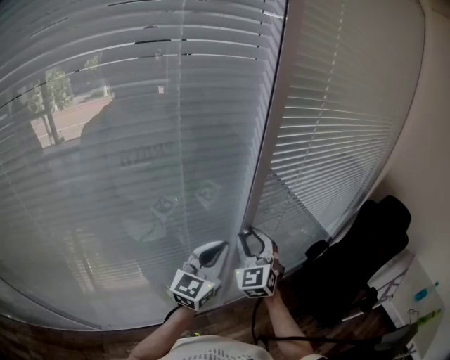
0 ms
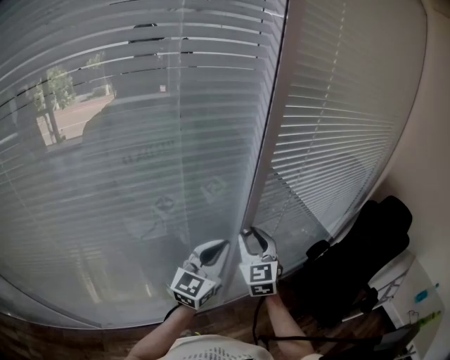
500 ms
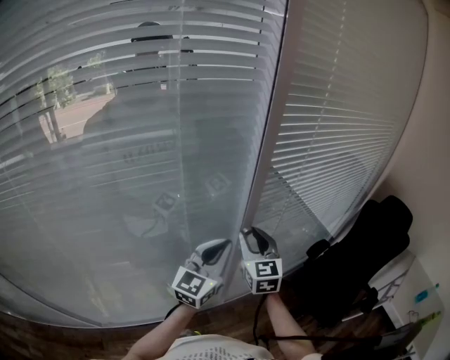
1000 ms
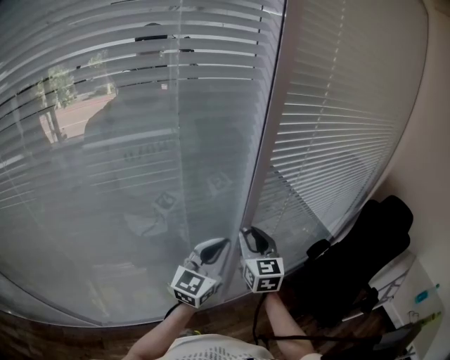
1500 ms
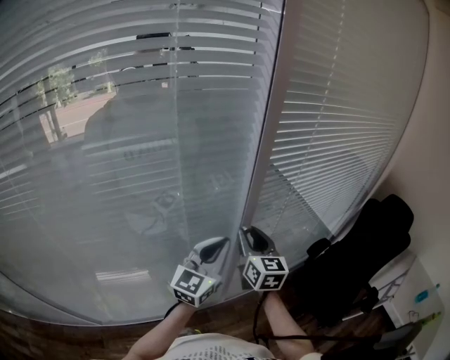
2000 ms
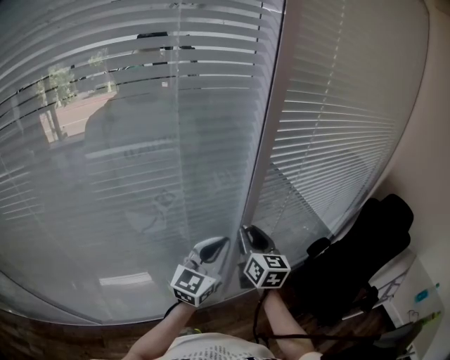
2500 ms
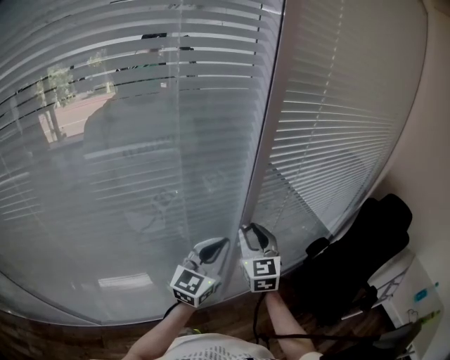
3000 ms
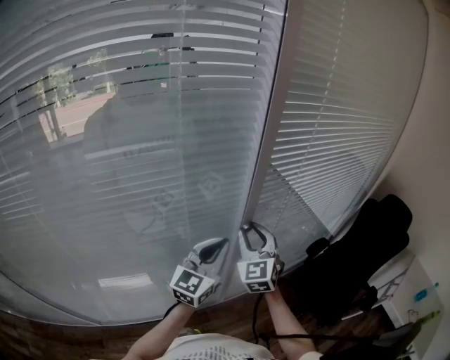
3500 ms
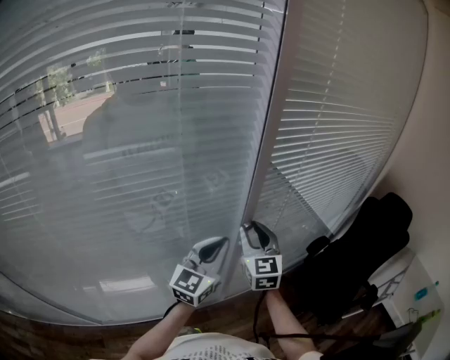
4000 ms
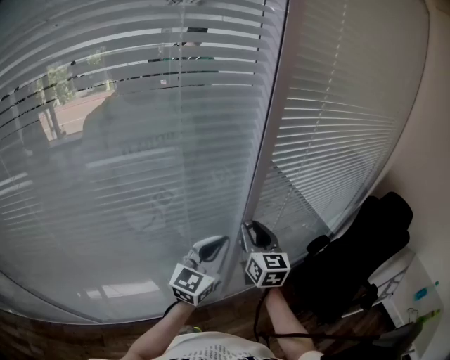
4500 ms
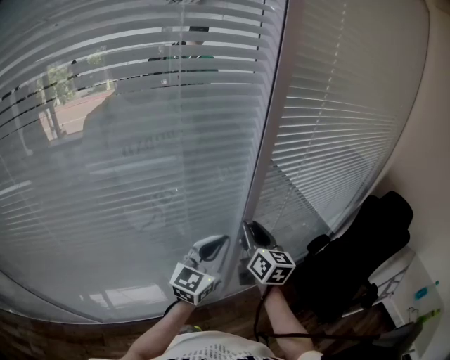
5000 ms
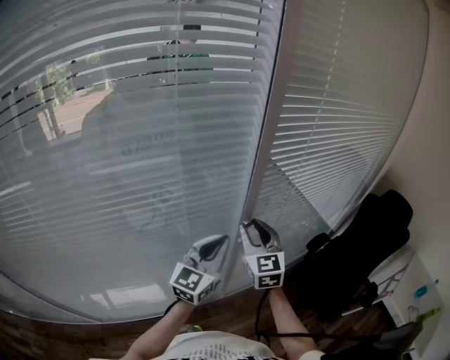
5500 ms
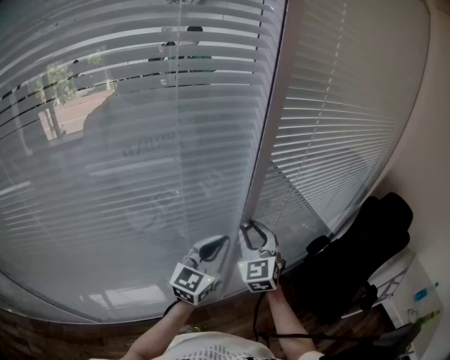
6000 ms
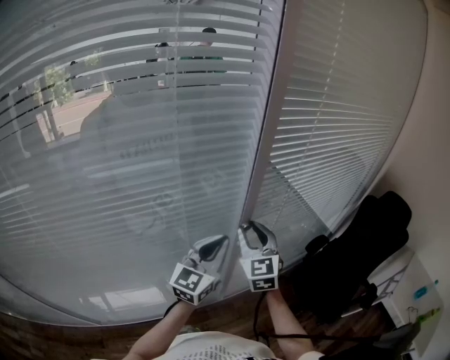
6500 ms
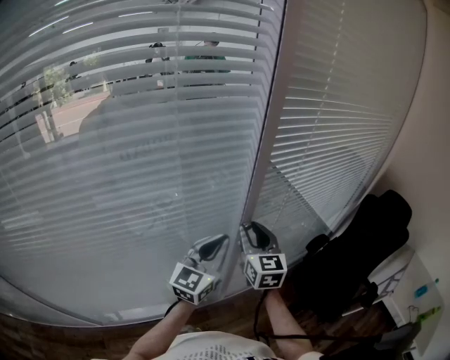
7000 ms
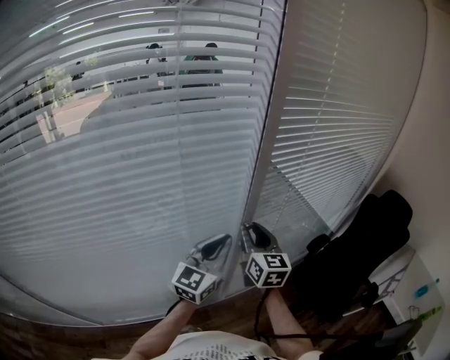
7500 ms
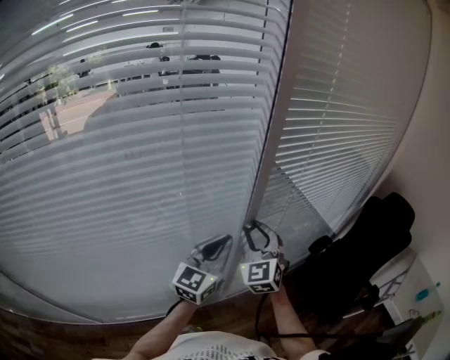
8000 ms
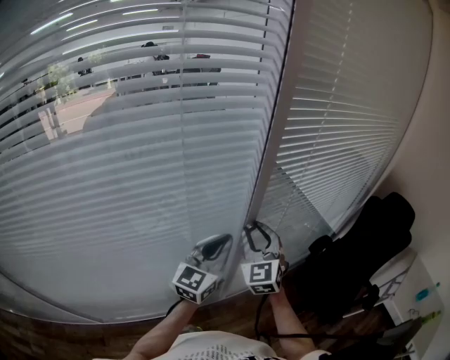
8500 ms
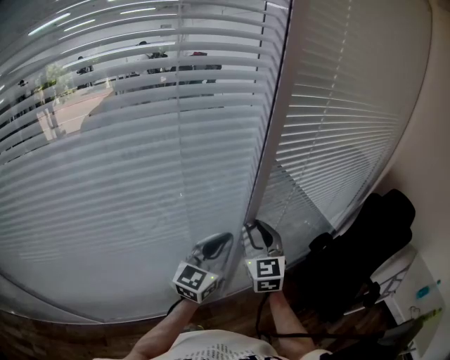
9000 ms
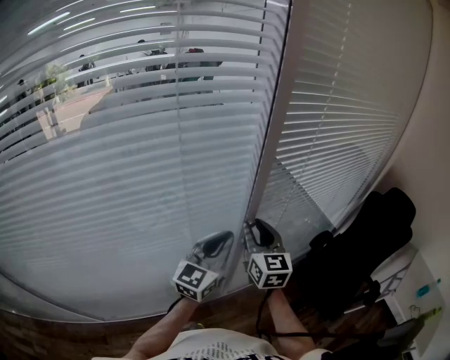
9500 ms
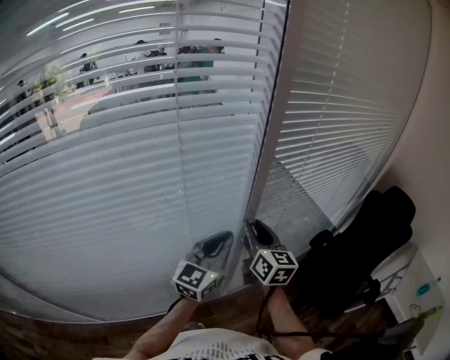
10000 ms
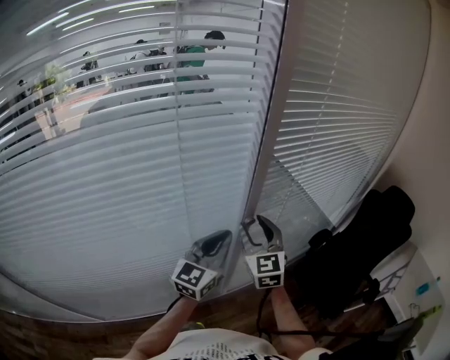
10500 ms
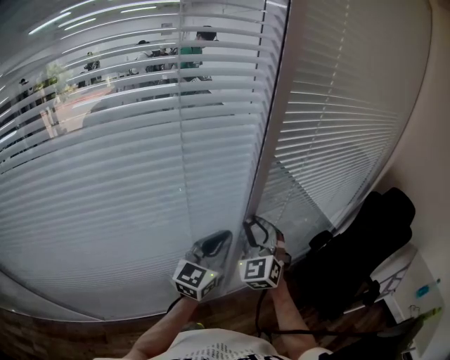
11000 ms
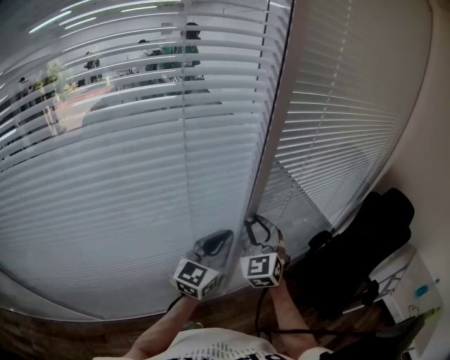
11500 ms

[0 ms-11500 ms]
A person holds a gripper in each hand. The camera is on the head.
0 ms to 2000 ms: The right gripper twists roughly 50 degrees clockwise, seen from behind.
2000 ms to 4000 ms: The right gripper swivels approximately 20 degrees.
6000 ms to 7500 ms: The right gripper rotates roughly 40 degrees.
9500 ms to 11500 ms: The right gripper turns by roughly 40 degrees.

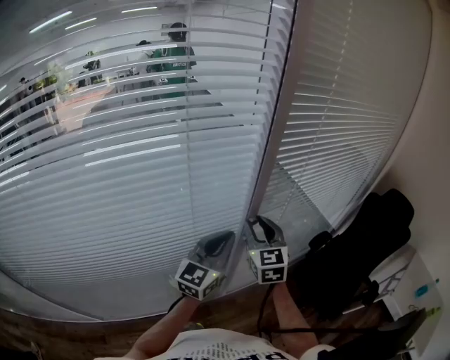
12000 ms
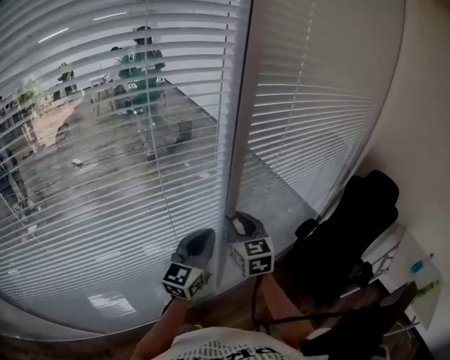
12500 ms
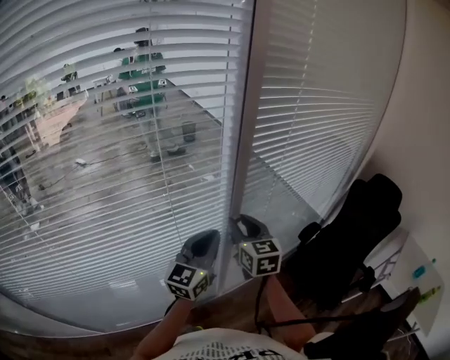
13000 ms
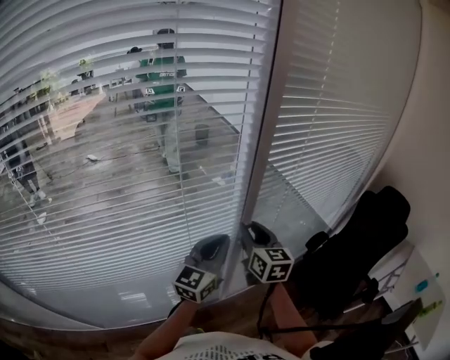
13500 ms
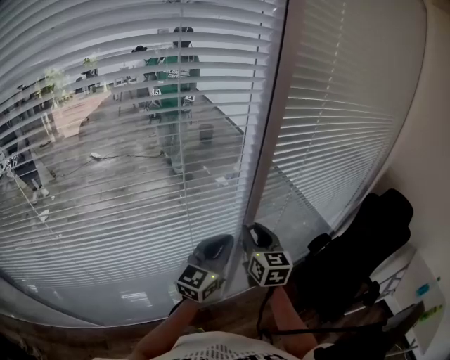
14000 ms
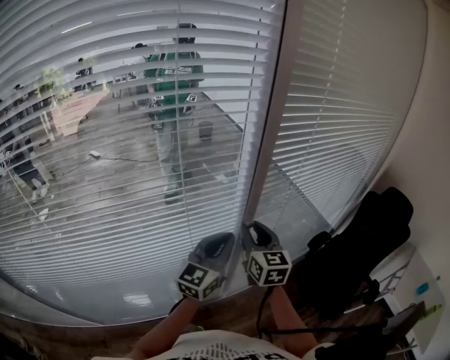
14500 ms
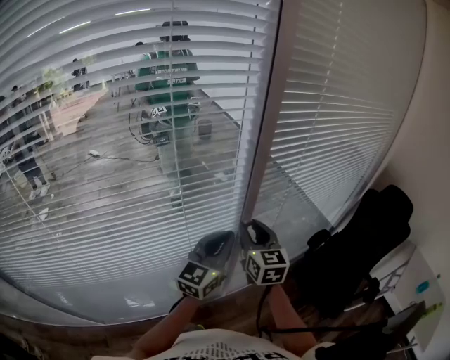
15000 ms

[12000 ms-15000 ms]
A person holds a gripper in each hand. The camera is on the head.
12000 ms to 13500 ms: The right gripper rotates some 20 degrees.
13500 ms to 15000 ms: The grippers move only a little.

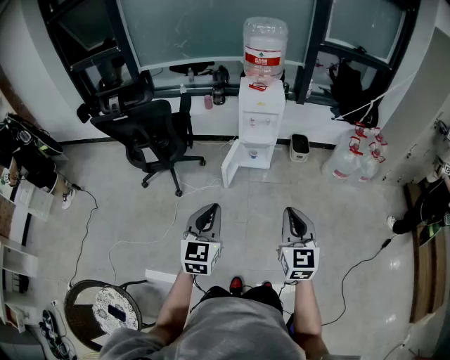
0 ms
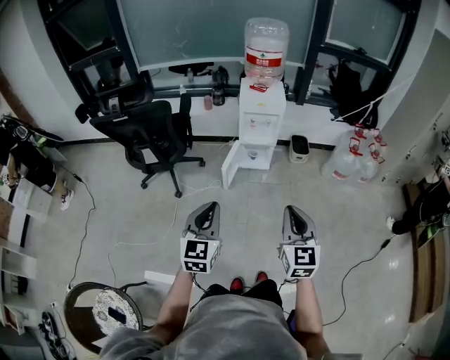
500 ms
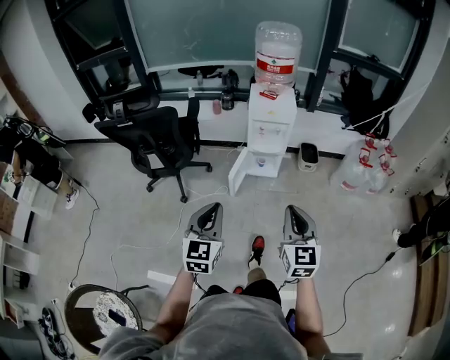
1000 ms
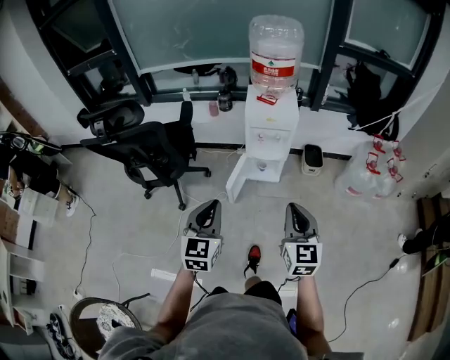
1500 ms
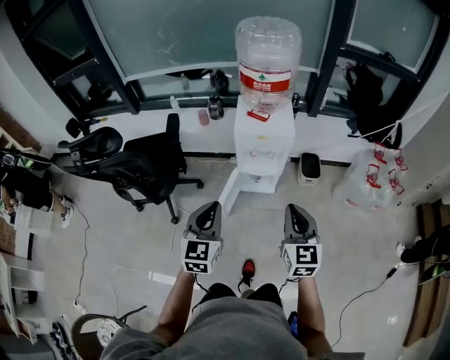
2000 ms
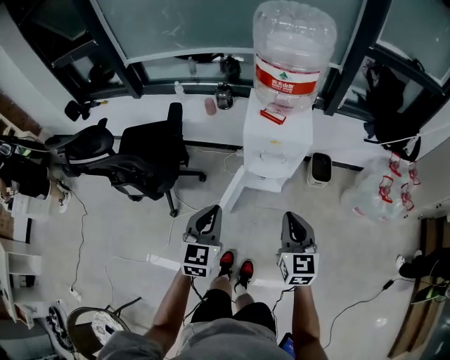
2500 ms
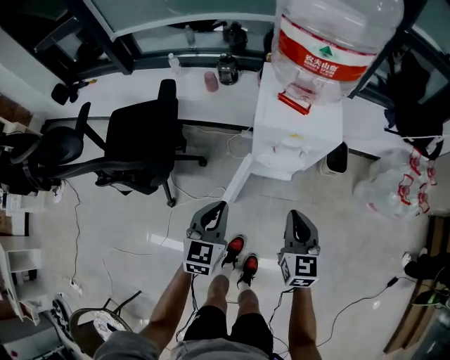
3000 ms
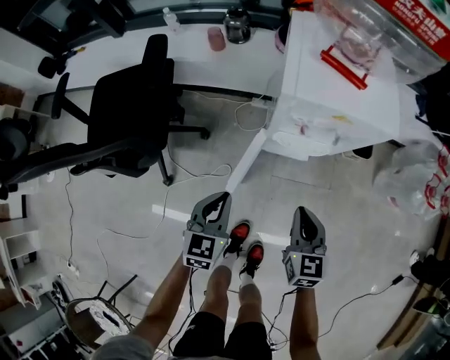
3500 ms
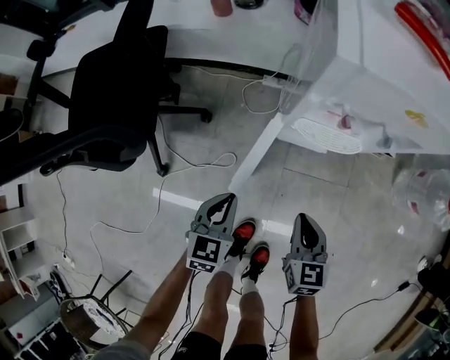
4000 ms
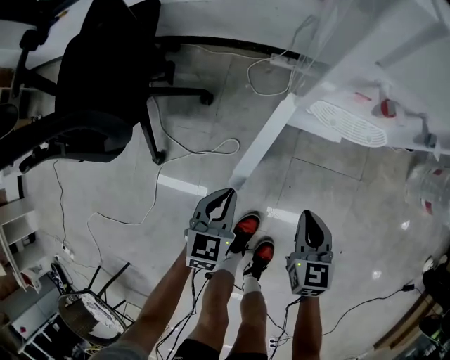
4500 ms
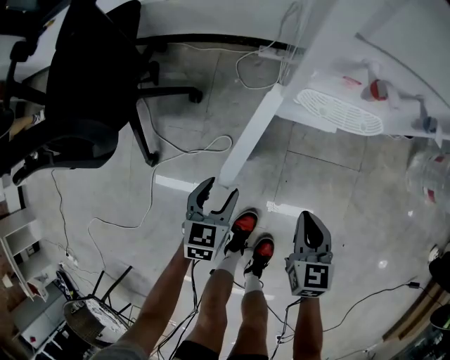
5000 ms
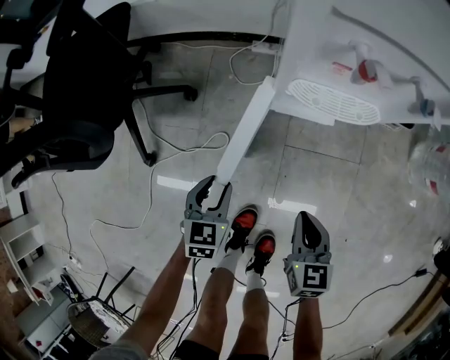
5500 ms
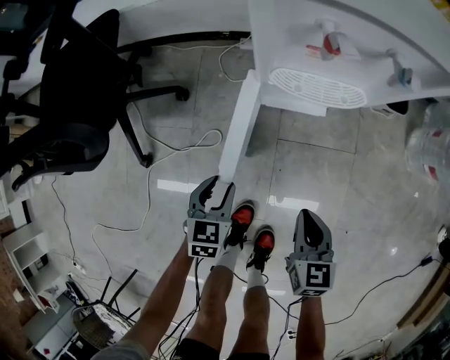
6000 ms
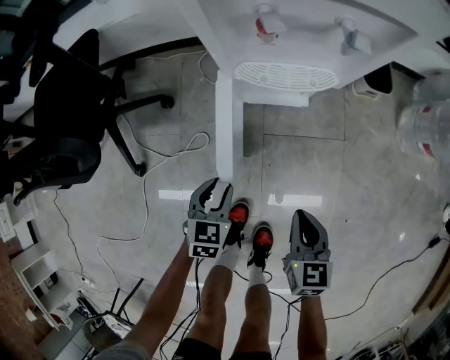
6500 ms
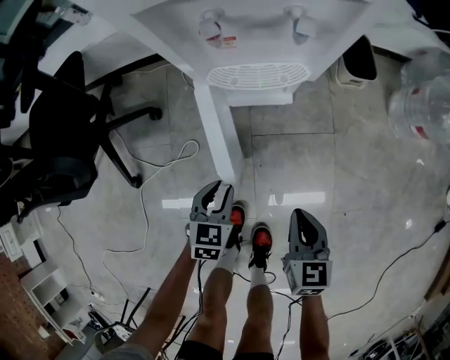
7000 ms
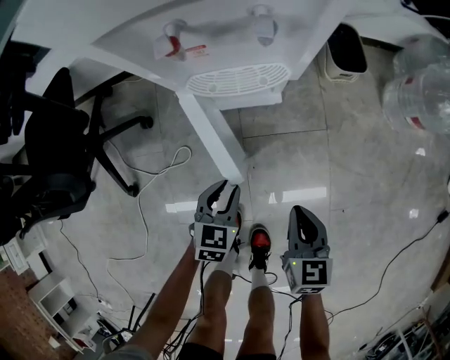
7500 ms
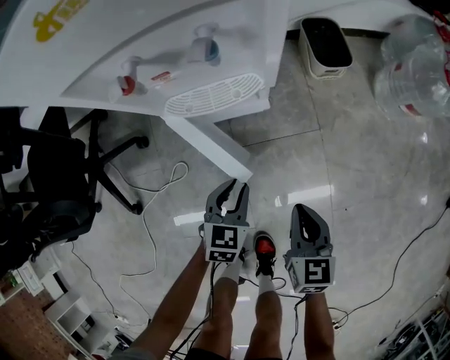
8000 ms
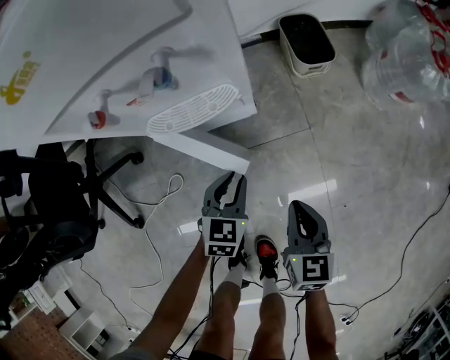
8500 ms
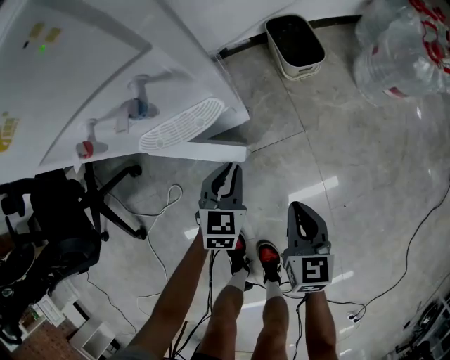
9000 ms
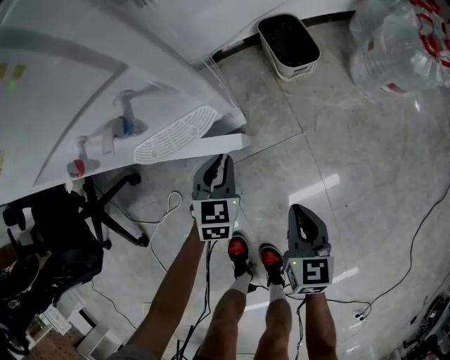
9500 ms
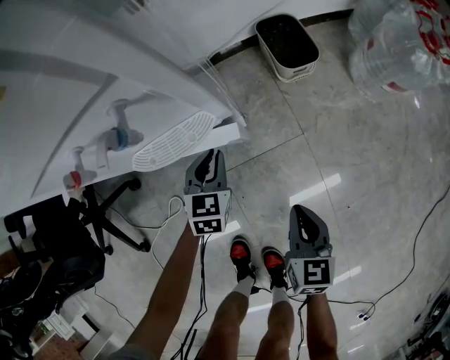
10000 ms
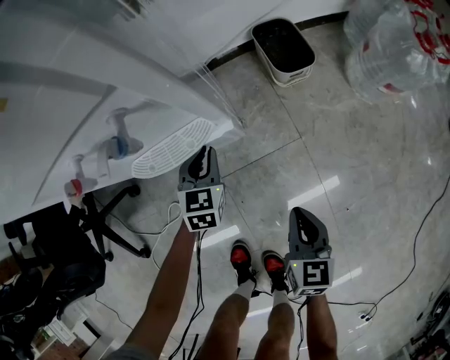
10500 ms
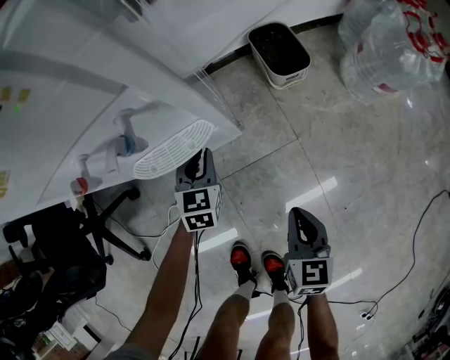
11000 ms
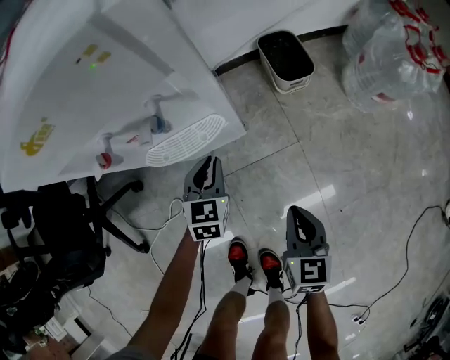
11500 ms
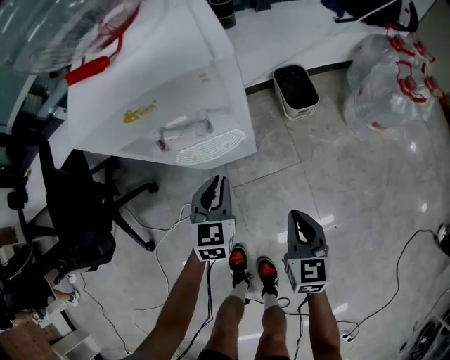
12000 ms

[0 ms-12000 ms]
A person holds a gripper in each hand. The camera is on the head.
0 ms to 2000 ms: The grippers both shift forward by some 35 cm.
2000 ms to 4000 ms: Both grippers travel together downward, approximately 50 cm. The left gripper rotates approximately 20 degrees, while the right gripper rotates approximately 30 degrees.
4000 ms to 6000 ms: The right gripper heads downward, backward and to the right, covering about 10 cm. The left gripper moves downward, roughly 15 cm, and opens.
6000 ms to 8000 ms: The right gripper is displaced to the right by roughly 15 cm; the left gripper moves to the right, approximately 20 cm, and turns by roughly 20 degrees.
8000 ms to 10000 ms: The left gripper goes about 15 cm forward. The right gripper shifts by about 5 cm.
10000 ms to 12000 ms: The two grippers go roughly 15 cm upward.

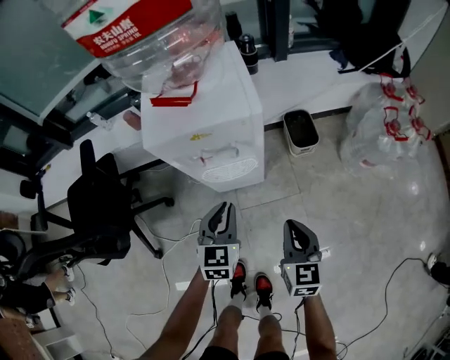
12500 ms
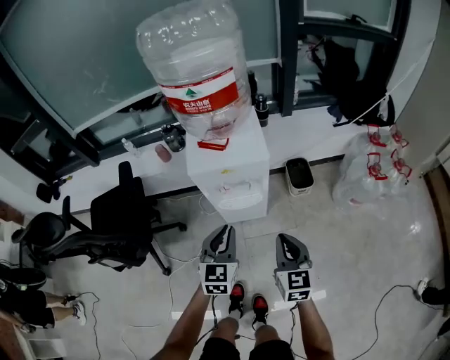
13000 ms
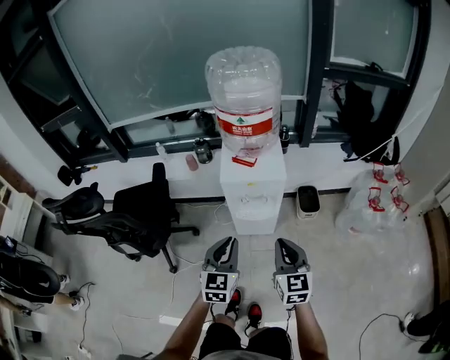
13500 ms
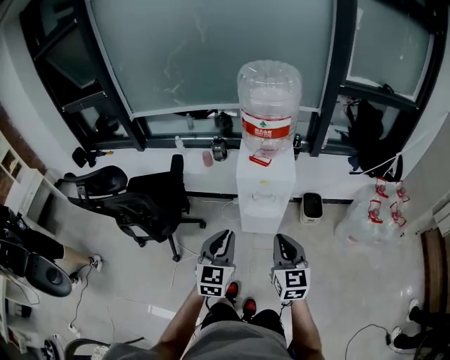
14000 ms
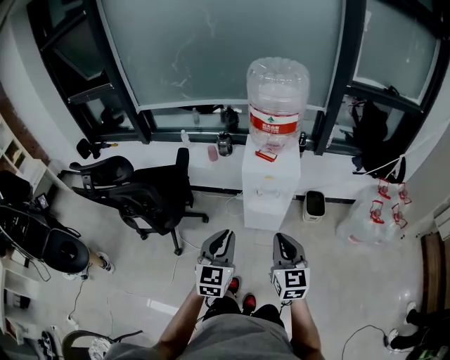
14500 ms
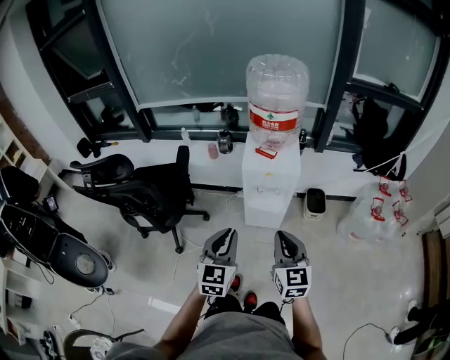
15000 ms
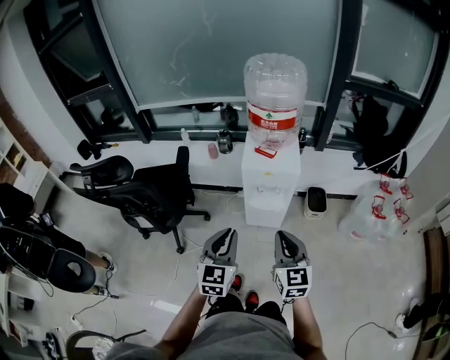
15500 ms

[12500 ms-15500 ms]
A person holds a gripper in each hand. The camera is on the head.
12500 ms to 14000 ms: The left gripper heads upward and backward, covering approximately 40 cm, while the right gripper goes approximately 35 cm upward, and turns by some 20 degrees.
14000 ms to 15500 ms: The grippers move only a little.
